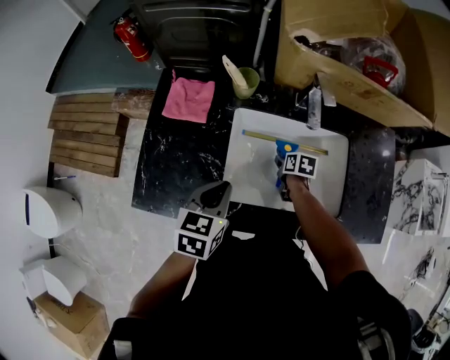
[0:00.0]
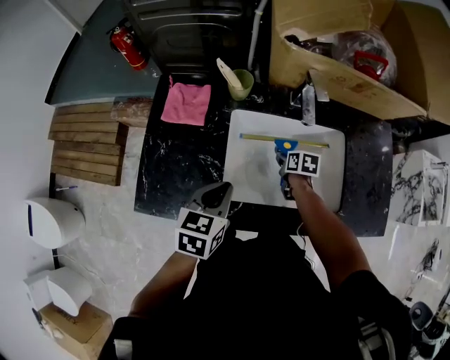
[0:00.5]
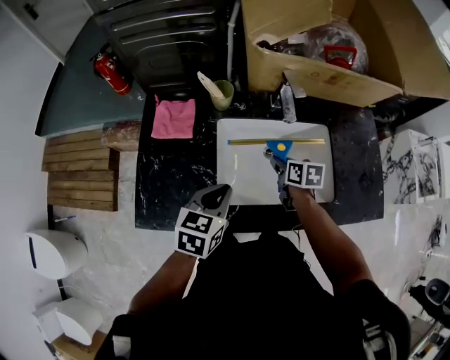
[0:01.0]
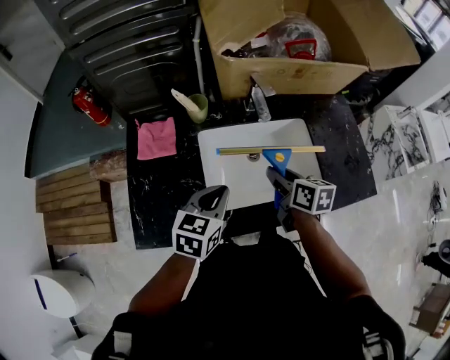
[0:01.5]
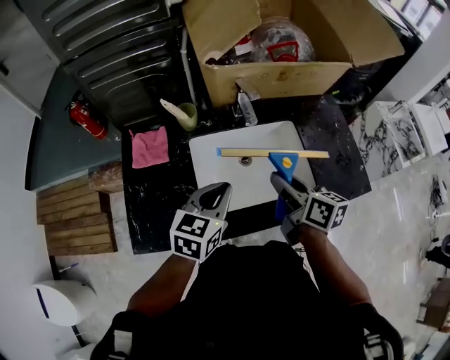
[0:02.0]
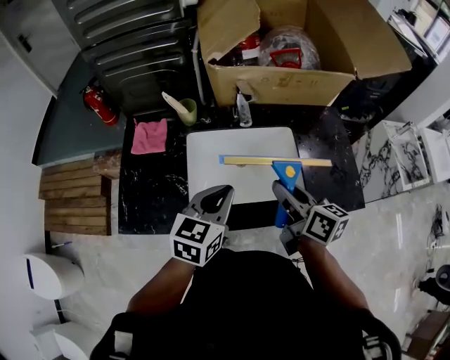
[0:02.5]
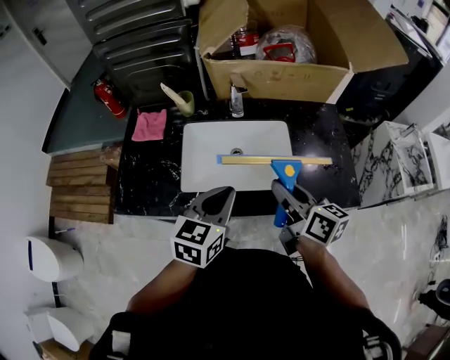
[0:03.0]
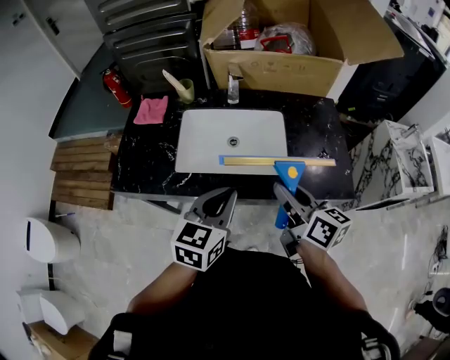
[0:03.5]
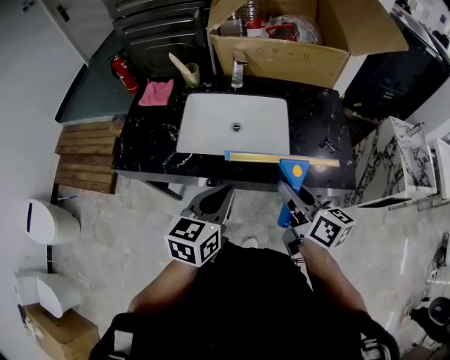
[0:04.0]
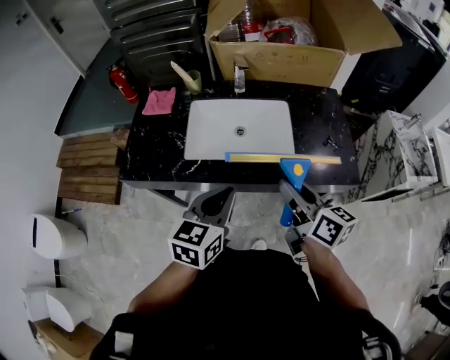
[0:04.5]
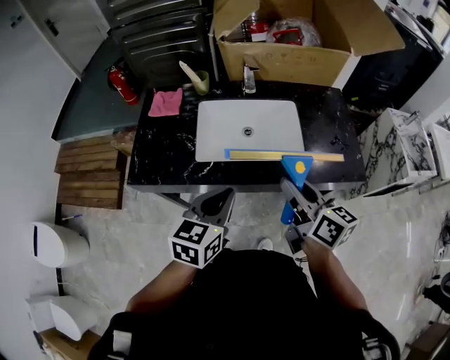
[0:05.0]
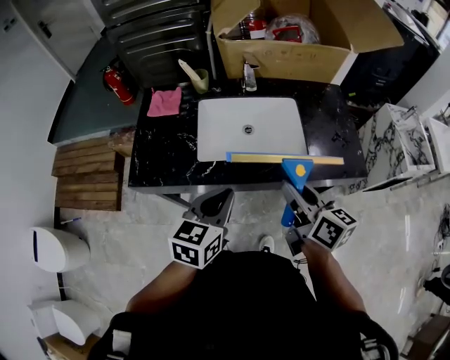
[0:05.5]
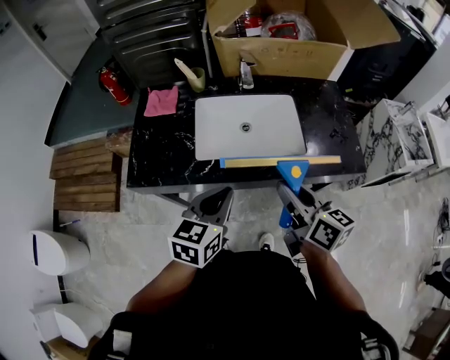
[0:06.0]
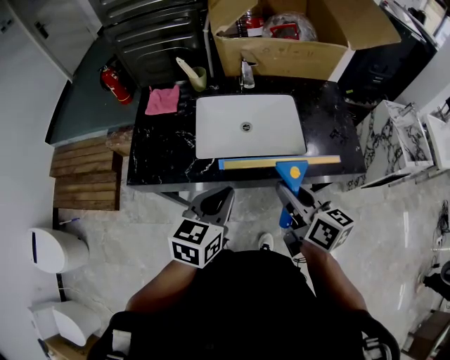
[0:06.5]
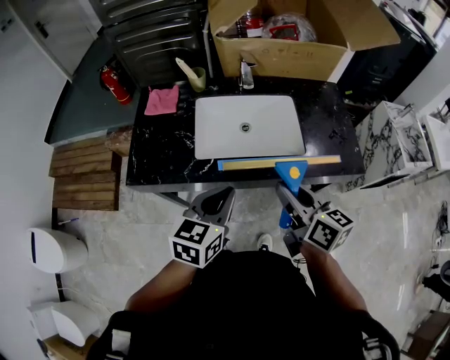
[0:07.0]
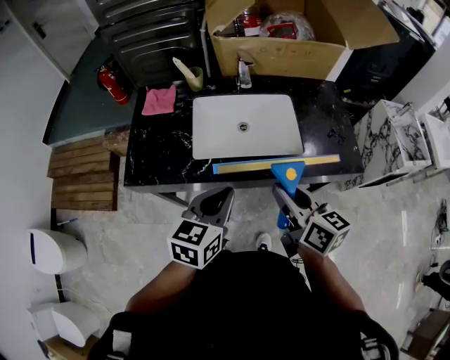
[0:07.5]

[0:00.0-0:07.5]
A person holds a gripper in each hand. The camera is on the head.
0:00.0 to 0:02.0: The left gripper is displaced upward and to the right by roughly 10 cm, and turns by approximately 30 degrees; the right gripper goes some 35 cm upward and backward, and angles its fingers upward, by about 40 degrees.
0:02.0 to 0:04.0: Both grippers move backward and to the right, some 25 cm. The left gripper turns by about 20 degrees.
0:04.0 to 0:05.5: Both grippers travel together to the left, about 10 cm.
0:05.5 to 0:07.5: The grippers move only a little.

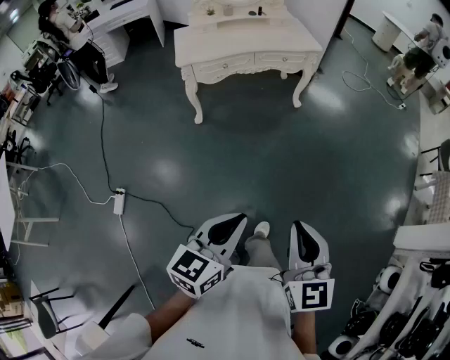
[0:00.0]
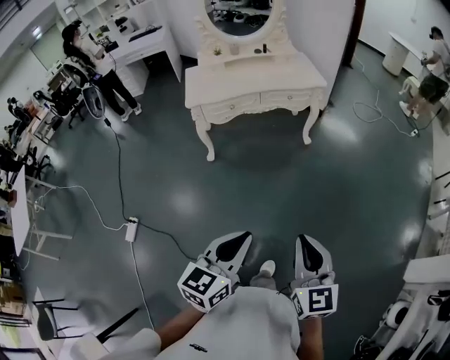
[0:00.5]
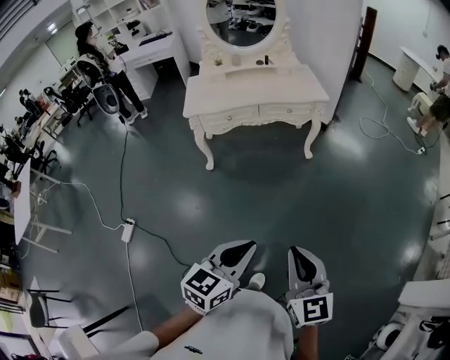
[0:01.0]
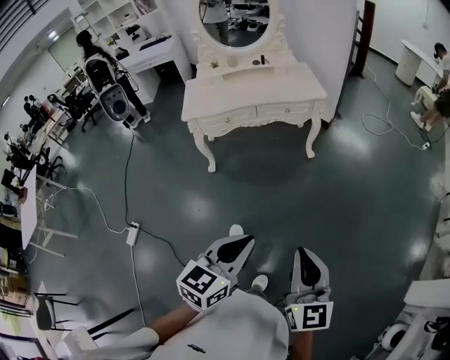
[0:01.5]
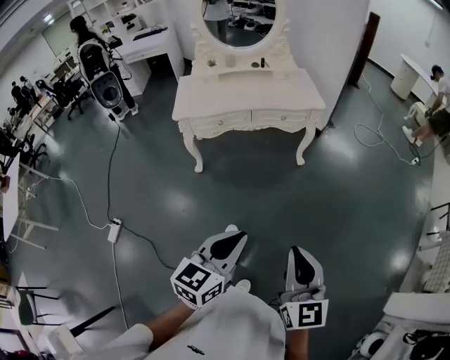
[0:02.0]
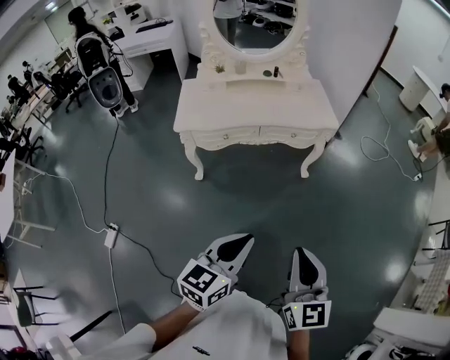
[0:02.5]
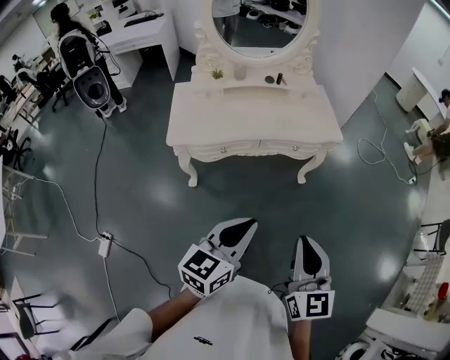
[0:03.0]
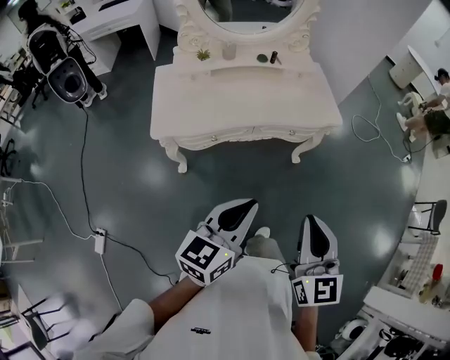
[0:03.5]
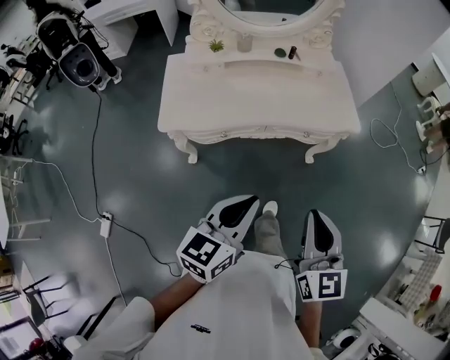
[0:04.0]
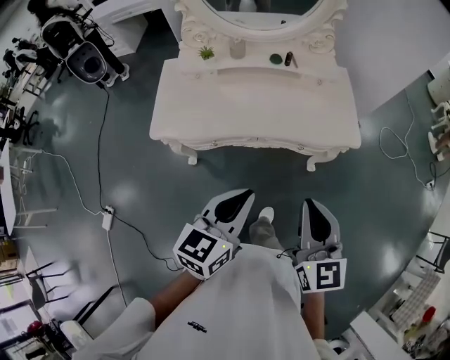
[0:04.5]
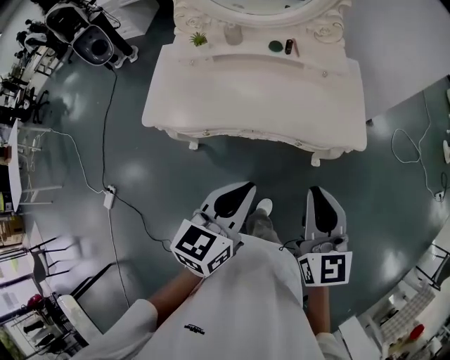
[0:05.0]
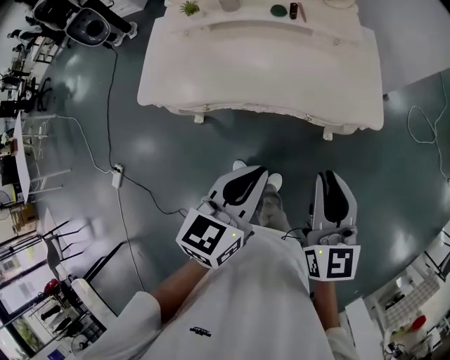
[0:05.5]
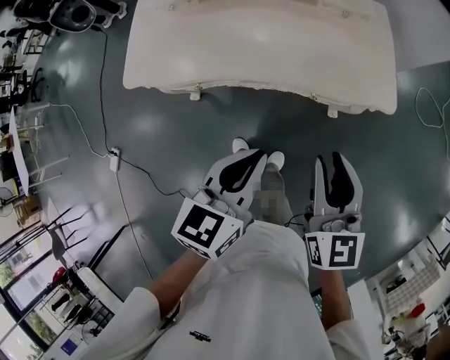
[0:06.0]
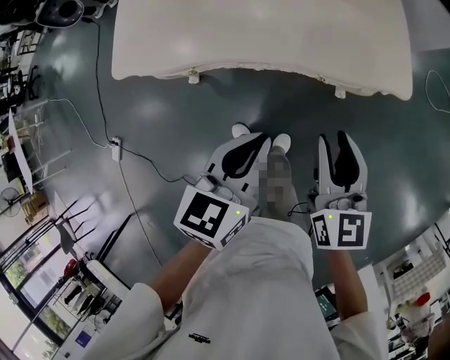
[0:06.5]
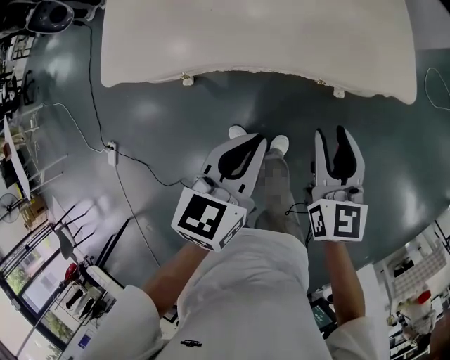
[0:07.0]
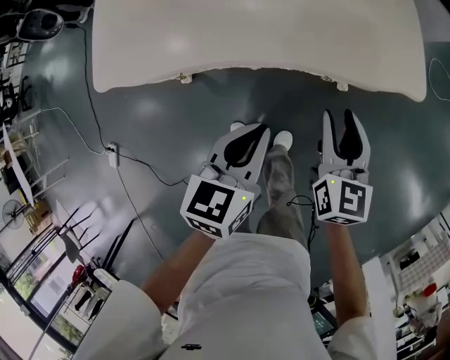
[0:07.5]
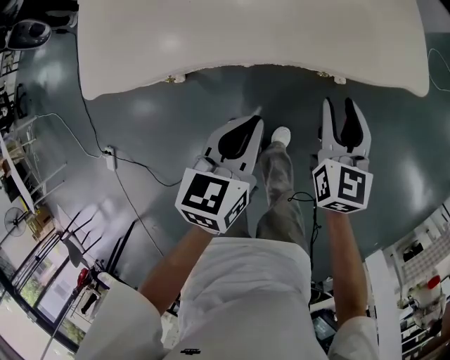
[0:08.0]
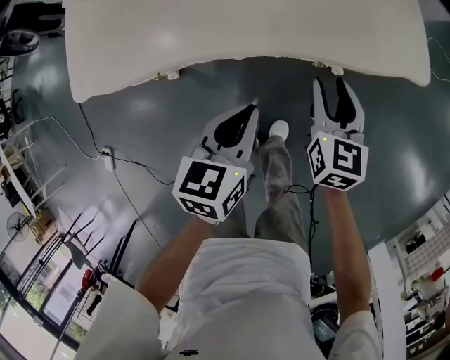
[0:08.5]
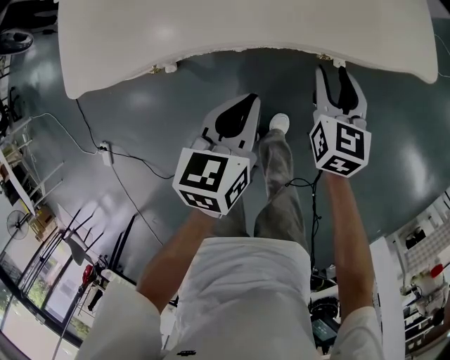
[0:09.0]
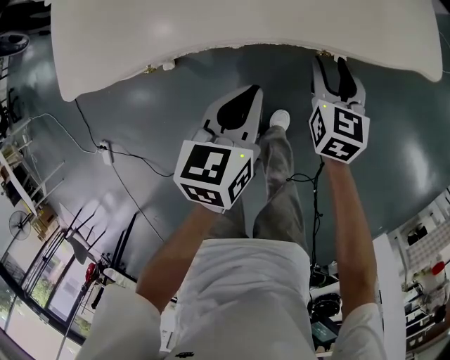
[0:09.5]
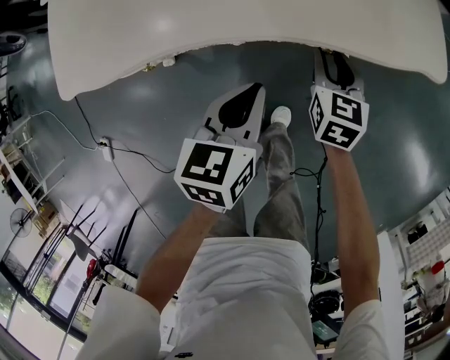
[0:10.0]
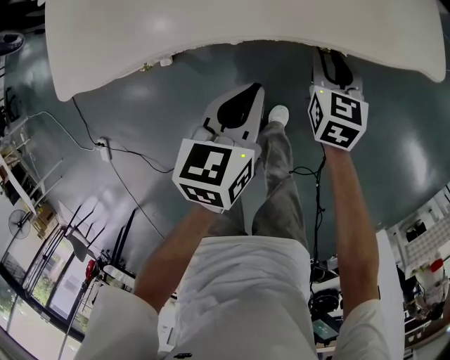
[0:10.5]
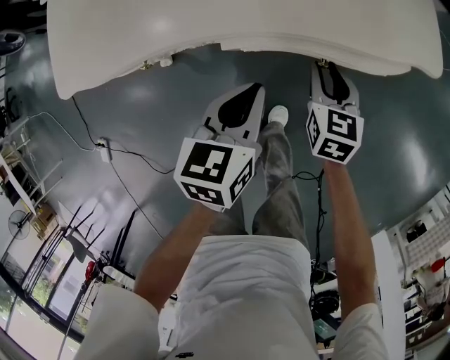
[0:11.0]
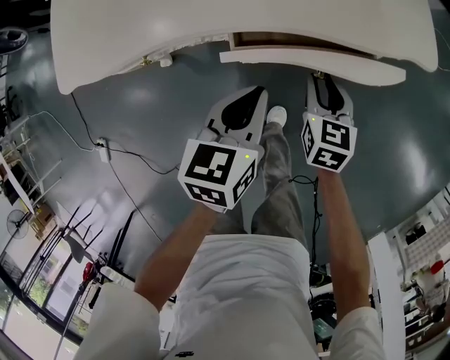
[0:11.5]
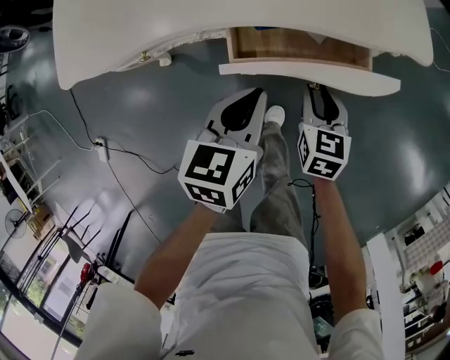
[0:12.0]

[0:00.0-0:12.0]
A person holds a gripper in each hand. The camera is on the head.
0:00.0 to 0:02.0: The two grippers go roughly 25 cm forward and to the right.
0:02.0 to 0:04.0: The pair of grippers is taken forward, roughly 40 cm.
0:04.0 to 0:06.0: Both grippers travel together forward, to the right and downward, roughly 25 cm. The right gripper opens its fingers.
0:06.0 to 0:08.0: The left gripper travels downward by some 15 cm, while the right gripper shifts some 20 cm downward and forward.
0:08.0 to 0:10.0: The right gripper is displaced downward and forward by approximately 15 cm, while the left gripper moves downward, roughly 5 cm.
0:10.0 to 0:12.0: The right gripper is displaced backward by roughly 10 cm.

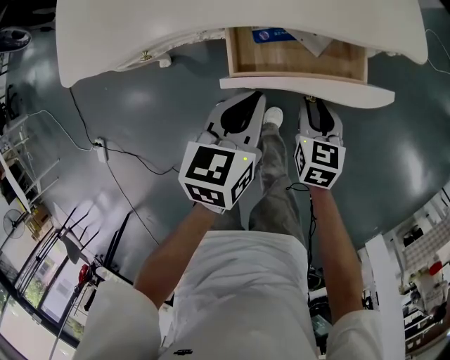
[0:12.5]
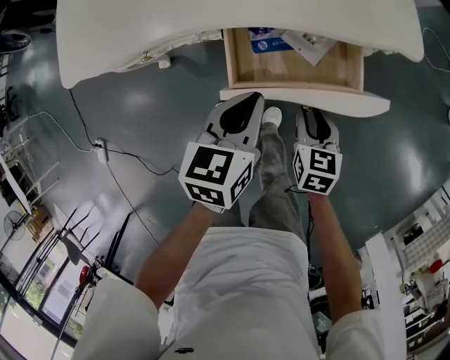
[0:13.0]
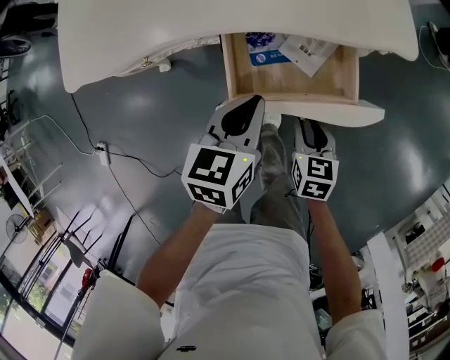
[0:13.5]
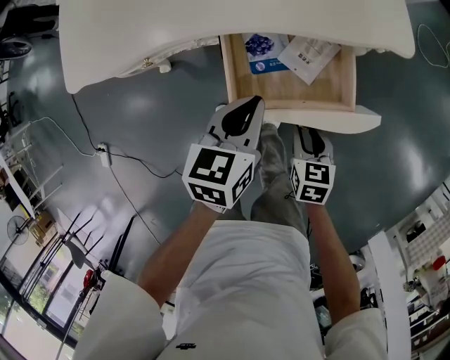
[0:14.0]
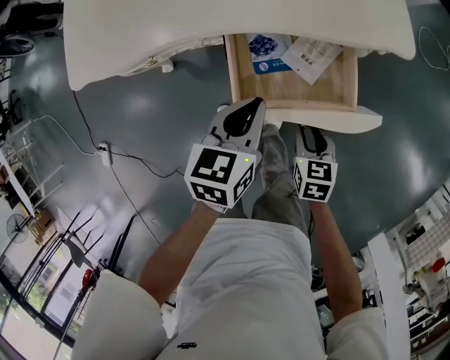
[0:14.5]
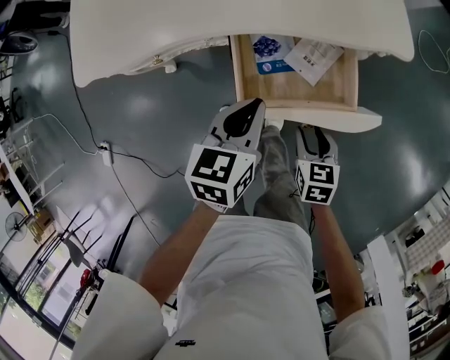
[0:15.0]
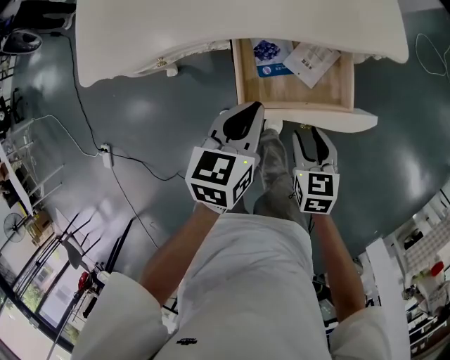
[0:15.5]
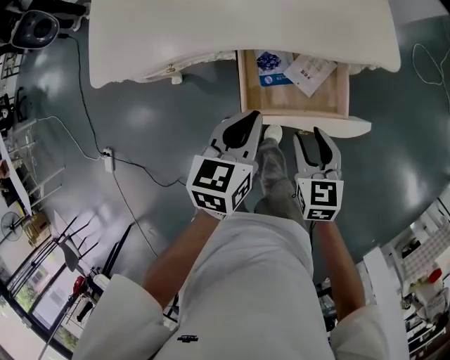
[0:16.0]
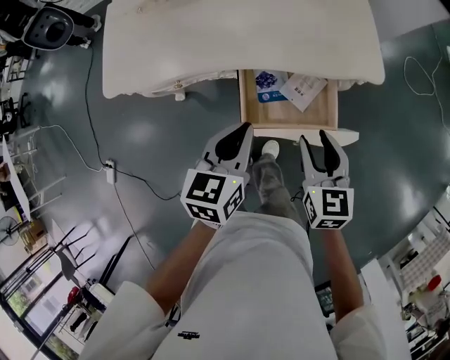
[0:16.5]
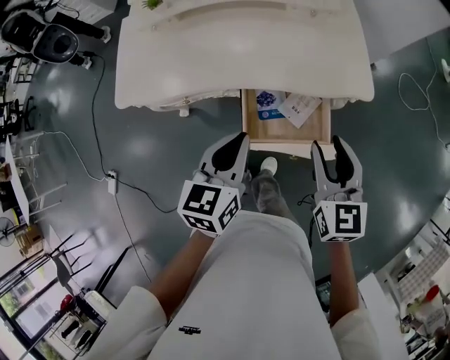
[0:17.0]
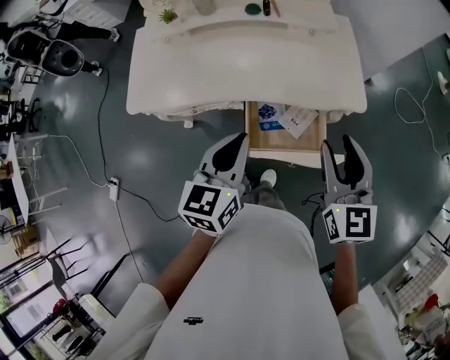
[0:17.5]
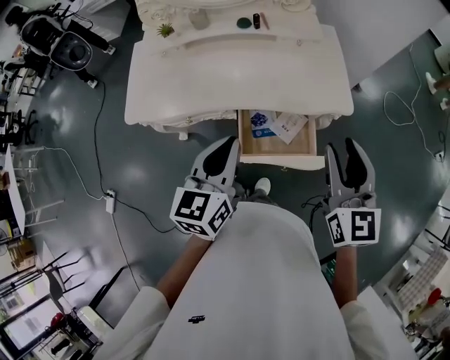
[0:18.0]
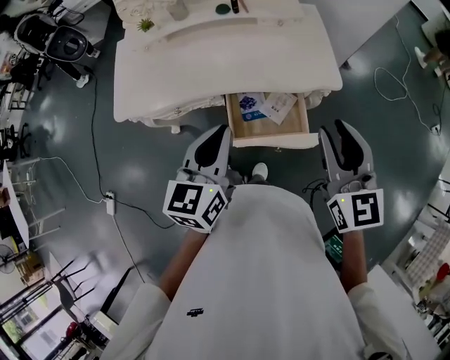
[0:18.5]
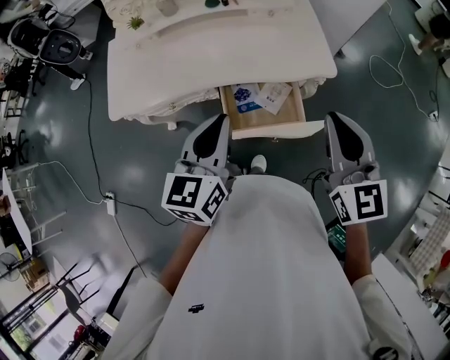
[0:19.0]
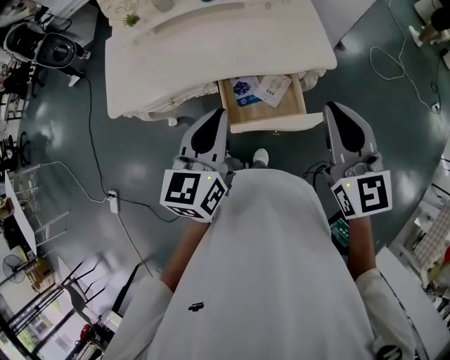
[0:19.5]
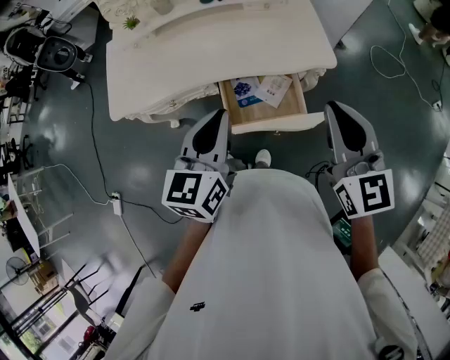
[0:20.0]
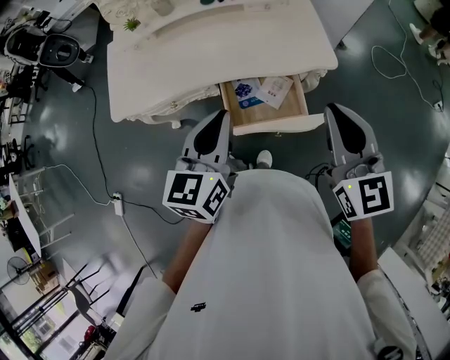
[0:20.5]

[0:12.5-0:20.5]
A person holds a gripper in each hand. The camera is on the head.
0:12.5 to 0:14.5: The right gripper goes roughly 5 cm backward.
0:14.5 to 0:16.5: The left gripper goes roughly 10 cm upward. Meanwhile the right gripper travels upward by approximately 20 cm, and swivels roughly 20 degrees.
0:16.5 to 0:18.5: Both grippers move upward, approximately 20 cm. The right gripper turns by about 20 degrees.
0:18.5 to 0:20.5: The right gripper closes its fingers.
